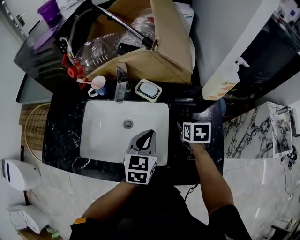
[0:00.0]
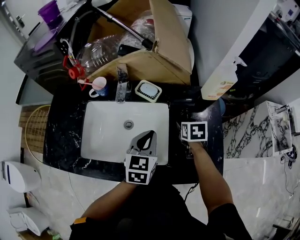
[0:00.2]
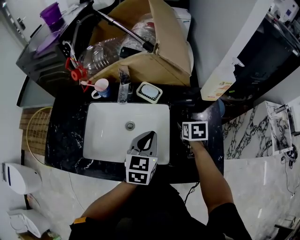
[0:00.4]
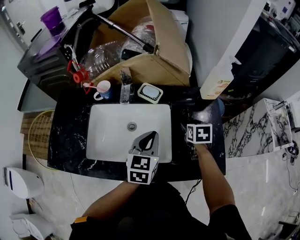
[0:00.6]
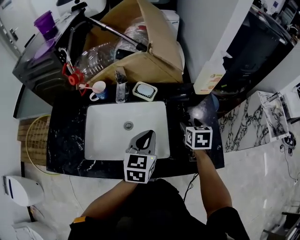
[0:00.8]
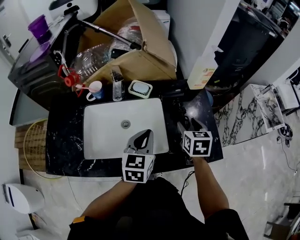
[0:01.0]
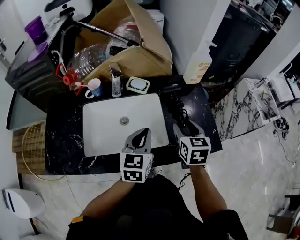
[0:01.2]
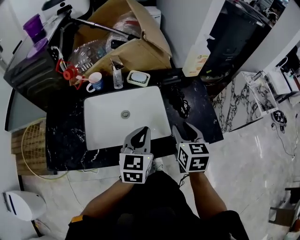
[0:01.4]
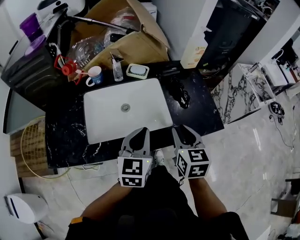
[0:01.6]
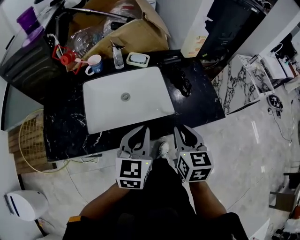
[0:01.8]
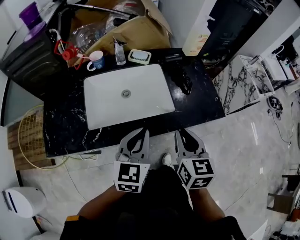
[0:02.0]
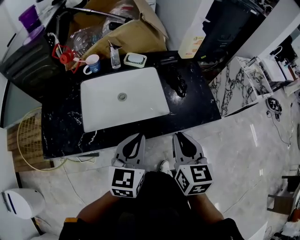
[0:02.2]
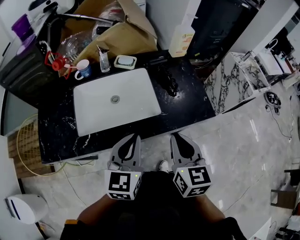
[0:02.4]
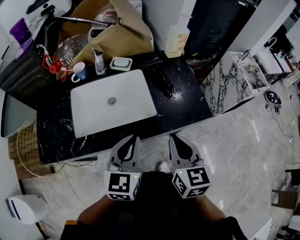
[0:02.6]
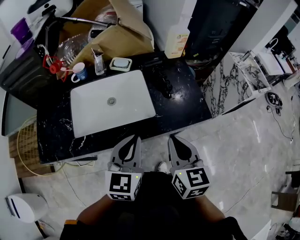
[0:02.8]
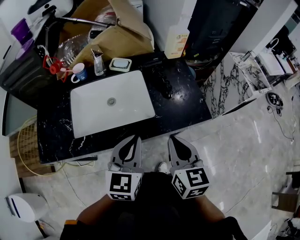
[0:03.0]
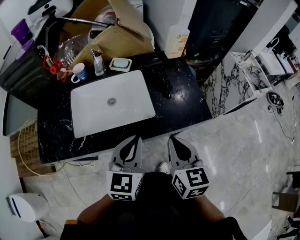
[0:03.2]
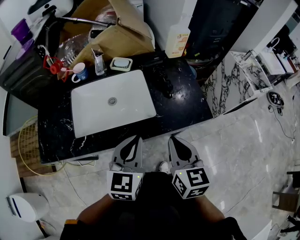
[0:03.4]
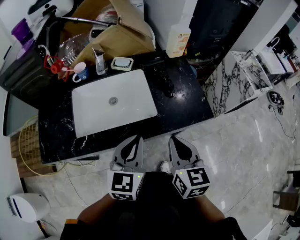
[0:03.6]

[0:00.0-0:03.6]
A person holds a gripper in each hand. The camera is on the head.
0:00.0 to 0:01.8: The right gripper heads backward and upward, covering about 35 cm, changes its angle by roughly 30 degrees, and closes. Meanwhile the left gripper moves backward, about 20 cm.
0:01.8 to 0:03.6: Both grippers travel together to the right, some 5 cm.

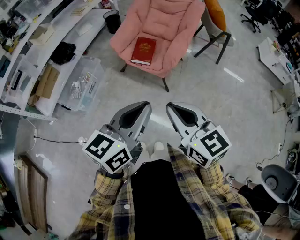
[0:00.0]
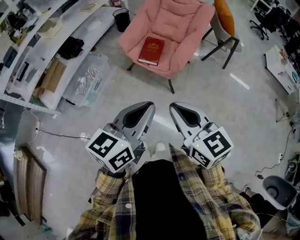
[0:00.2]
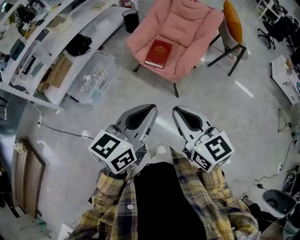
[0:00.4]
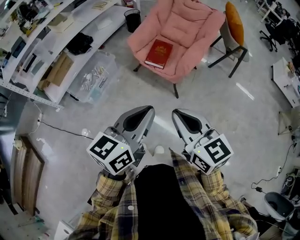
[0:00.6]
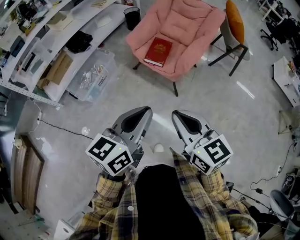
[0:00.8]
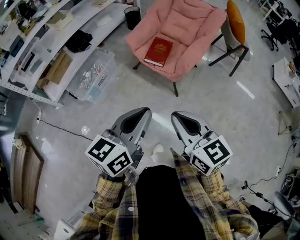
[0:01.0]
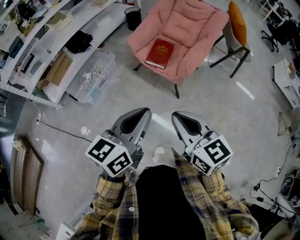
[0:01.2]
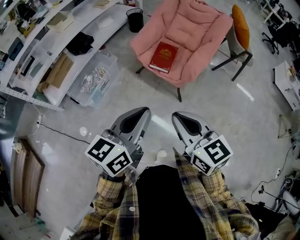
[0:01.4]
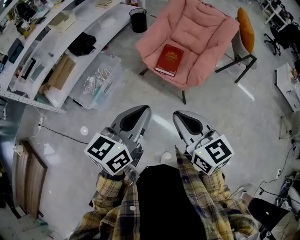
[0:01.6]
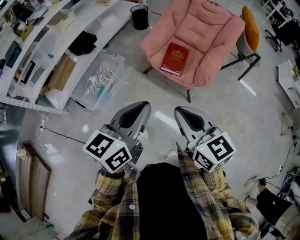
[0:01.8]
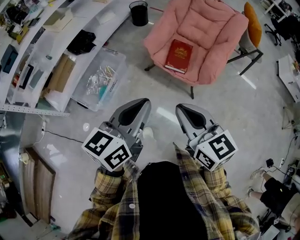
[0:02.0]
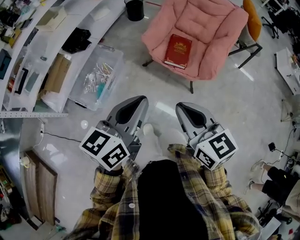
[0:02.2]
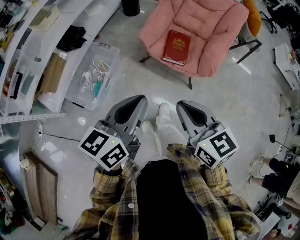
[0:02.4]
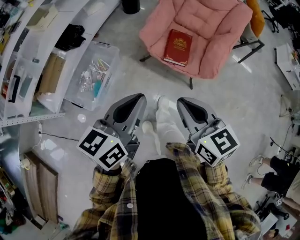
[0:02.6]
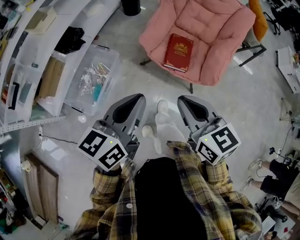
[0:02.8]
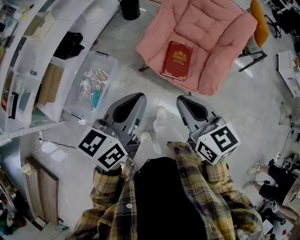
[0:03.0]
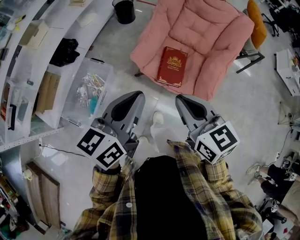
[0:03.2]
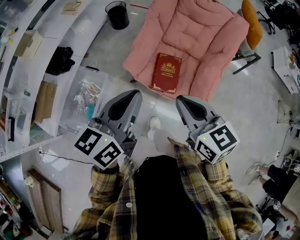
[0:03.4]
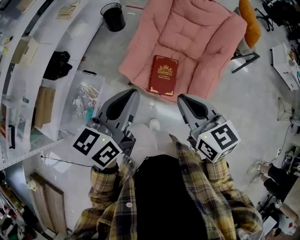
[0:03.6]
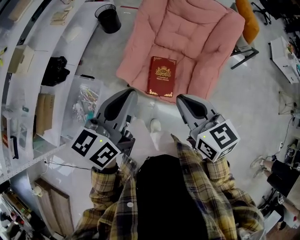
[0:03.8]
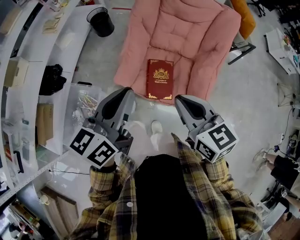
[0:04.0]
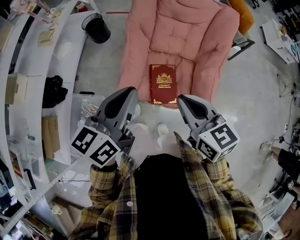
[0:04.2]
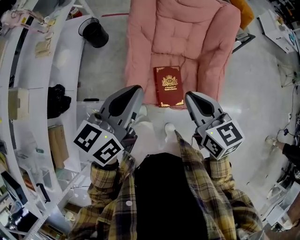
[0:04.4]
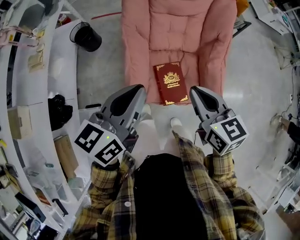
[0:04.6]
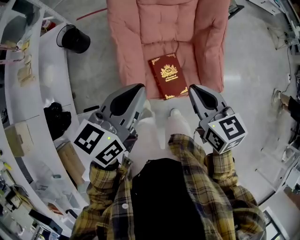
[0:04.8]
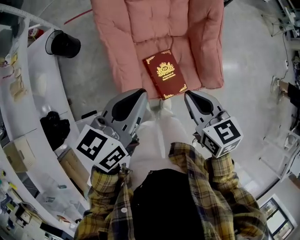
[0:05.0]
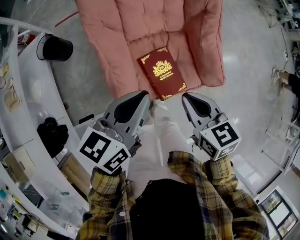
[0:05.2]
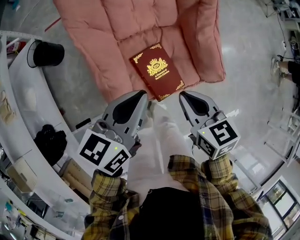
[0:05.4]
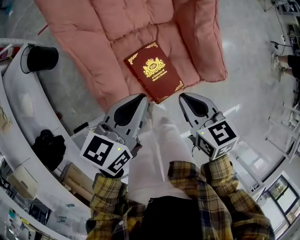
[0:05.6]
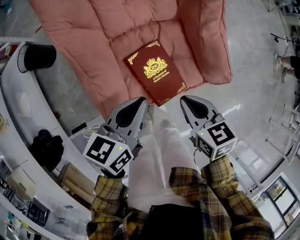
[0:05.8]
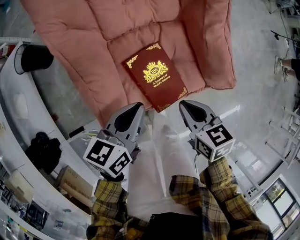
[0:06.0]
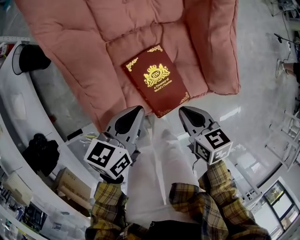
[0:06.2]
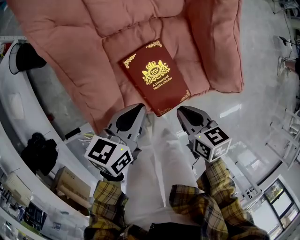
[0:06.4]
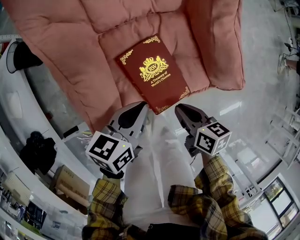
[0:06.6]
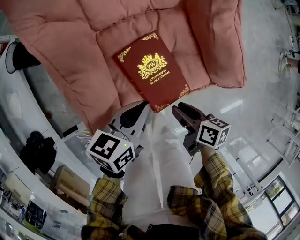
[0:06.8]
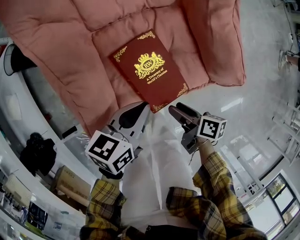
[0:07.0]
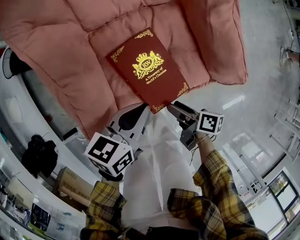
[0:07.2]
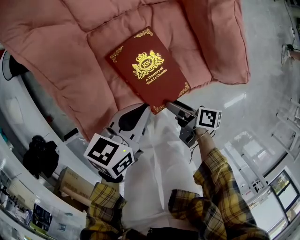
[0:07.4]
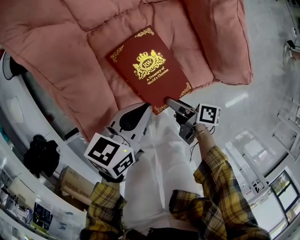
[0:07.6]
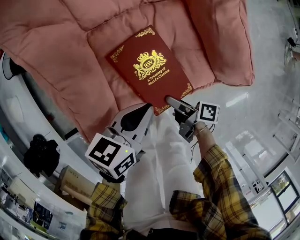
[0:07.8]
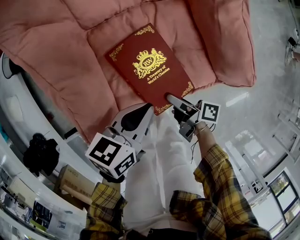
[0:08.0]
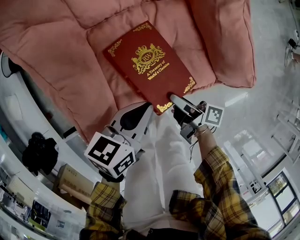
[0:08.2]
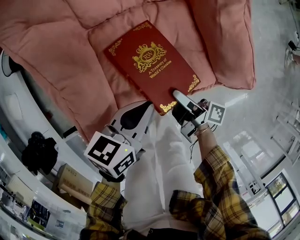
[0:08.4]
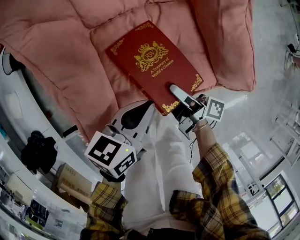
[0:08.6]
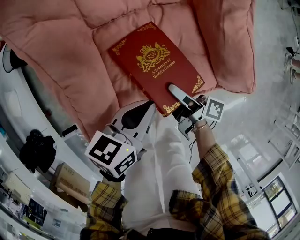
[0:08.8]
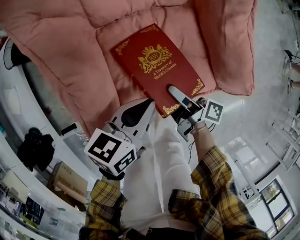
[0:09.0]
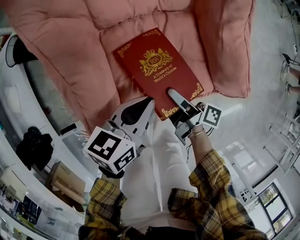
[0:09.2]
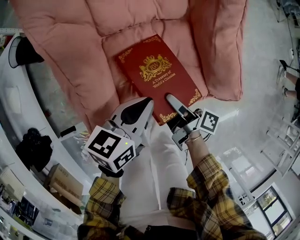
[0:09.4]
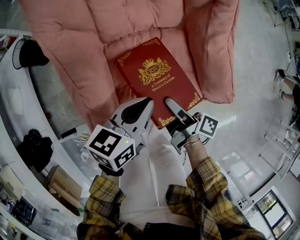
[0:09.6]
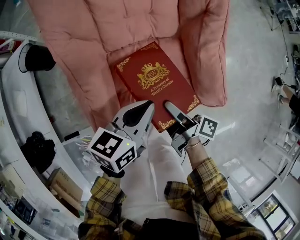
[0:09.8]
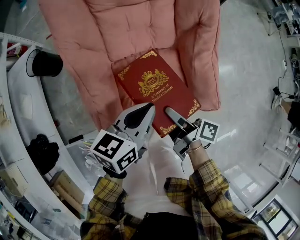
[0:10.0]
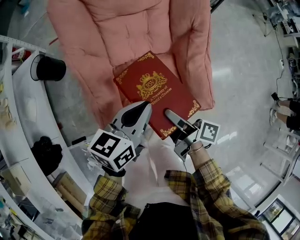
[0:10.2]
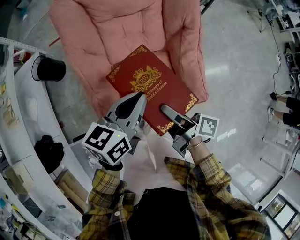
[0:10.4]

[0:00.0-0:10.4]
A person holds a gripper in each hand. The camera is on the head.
0:00.0 to 0:01.4: The left gripper heads forward and to the left, covering about 10 cm, while the right gripper is displaced forward by roughly 5 cm.
0:01.4 to 0:03.0: The grippers both shift forward and to the left by about 35 cm.
0:03.0 to 0:04.4: Both grippers travel together forward, about 30 cm. The left gripper changes its angle by about 20 degrees. Meanwhile the right gripper turns by roughly 30 degrees.
0:04.4 to 0:06.0: Both grippers travel together downward, approximately 35 cm. The left gripper swivels about 30 degrees. Meanwhile the right gripper rotates about 30 degrees.
0:06.0 to 0:07.4: The right gripper is displaced downward by about 20 cm, rolls clockwise, seen from behind, by some 60 degrees, and opens. The left gripper shifts some 10 cm downward and to the right.
0:07.4 to 0:09.0: The right gripper travels forward and upward by some 10 cm, and swivels approximately 20 degrees.
0:09.0 to 0:10.4: The two grippers go some 25 cm upward.

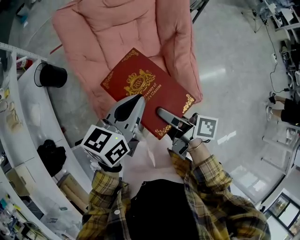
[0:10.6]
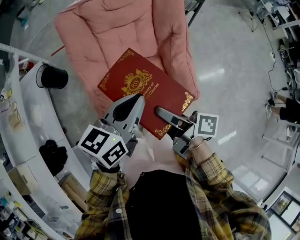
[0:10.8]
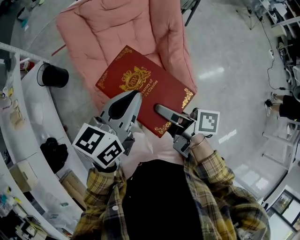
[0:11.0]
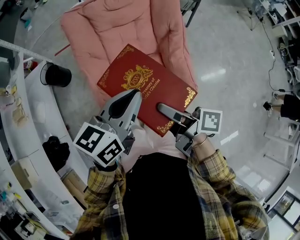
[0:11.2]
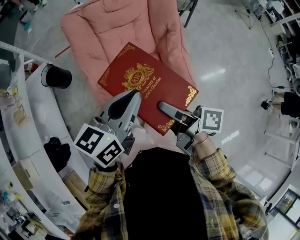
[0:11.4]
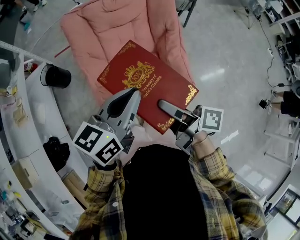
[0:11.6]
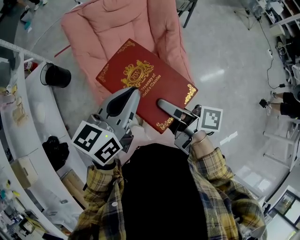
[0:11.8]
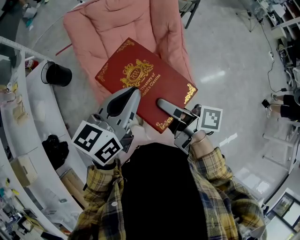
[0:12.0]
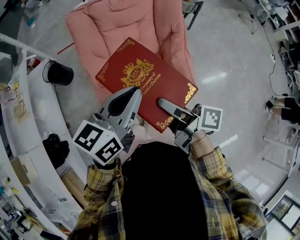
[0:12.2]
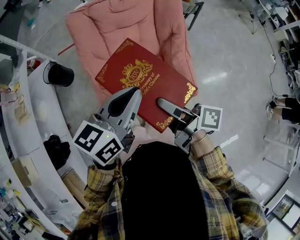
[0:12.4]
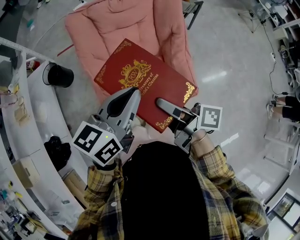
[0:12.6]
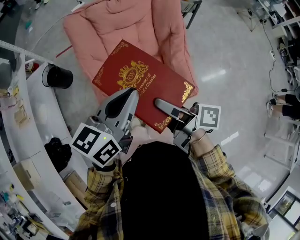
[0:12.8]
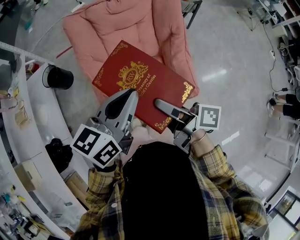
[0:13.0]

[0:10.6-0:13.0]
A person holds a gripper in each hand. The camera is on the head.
0:10.6 to 0:11.8: The left gripper travels upward and backward by roughly 10 cm. Meanwhile the right gripper travels upward by approximately 10 cm.
0:11.8 to 0:13.0: The grippers make only small movements.

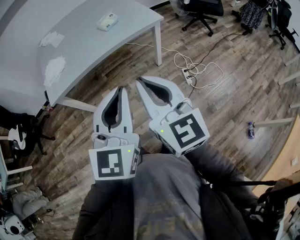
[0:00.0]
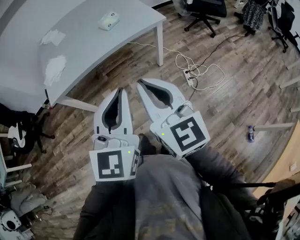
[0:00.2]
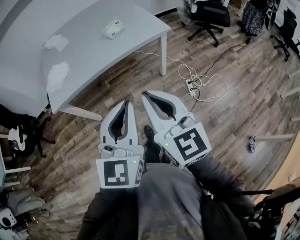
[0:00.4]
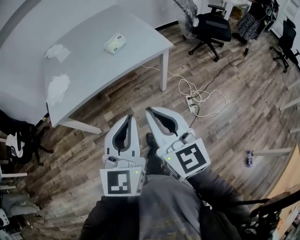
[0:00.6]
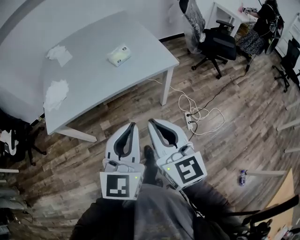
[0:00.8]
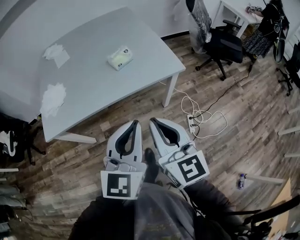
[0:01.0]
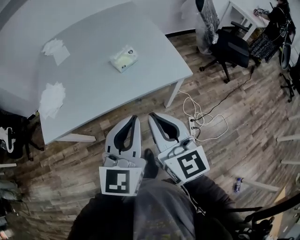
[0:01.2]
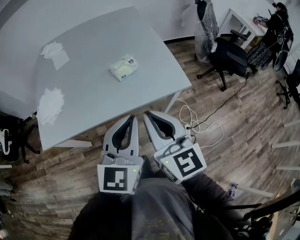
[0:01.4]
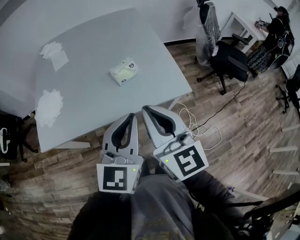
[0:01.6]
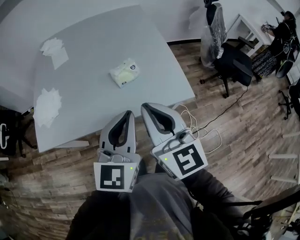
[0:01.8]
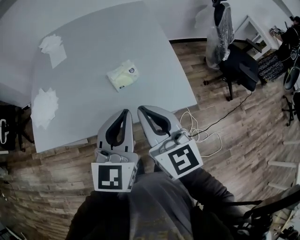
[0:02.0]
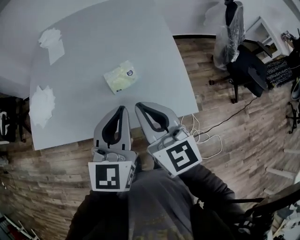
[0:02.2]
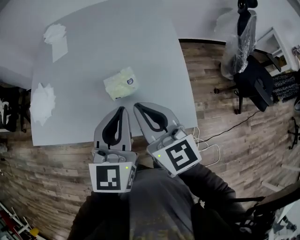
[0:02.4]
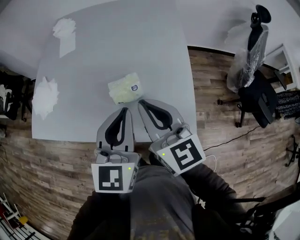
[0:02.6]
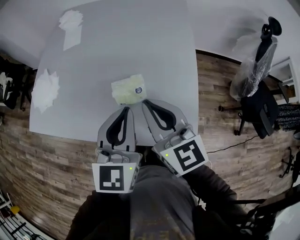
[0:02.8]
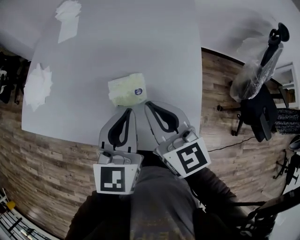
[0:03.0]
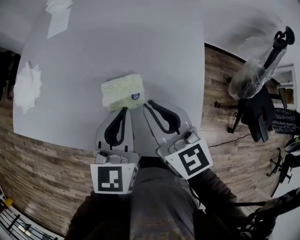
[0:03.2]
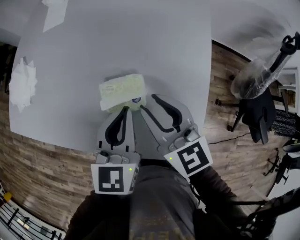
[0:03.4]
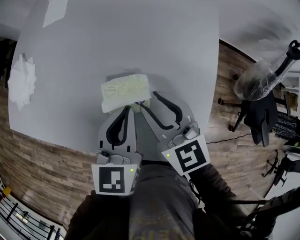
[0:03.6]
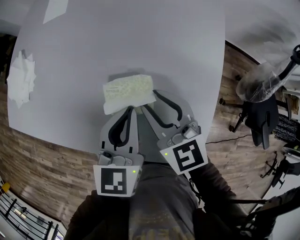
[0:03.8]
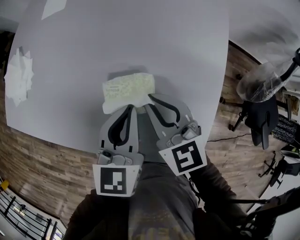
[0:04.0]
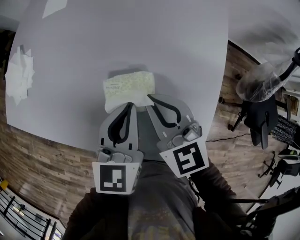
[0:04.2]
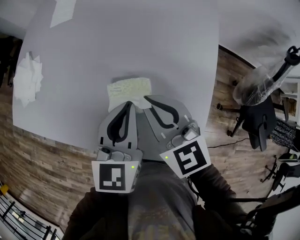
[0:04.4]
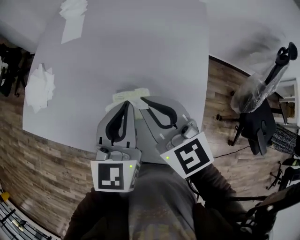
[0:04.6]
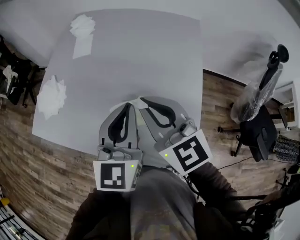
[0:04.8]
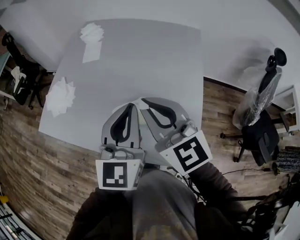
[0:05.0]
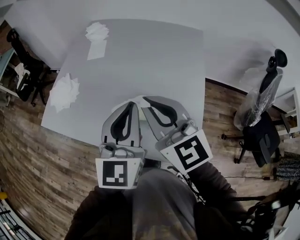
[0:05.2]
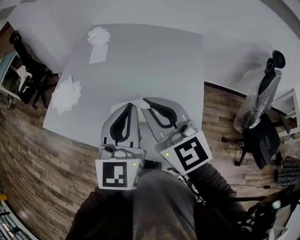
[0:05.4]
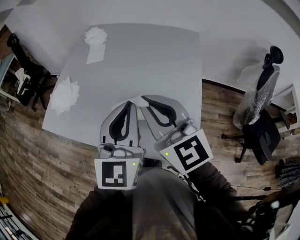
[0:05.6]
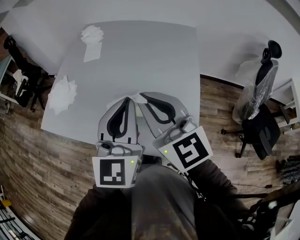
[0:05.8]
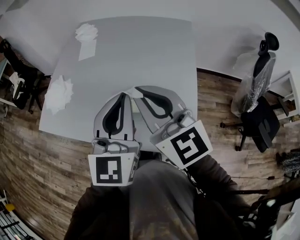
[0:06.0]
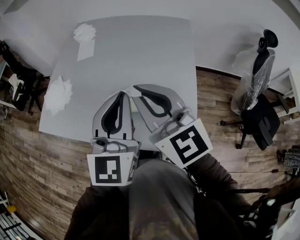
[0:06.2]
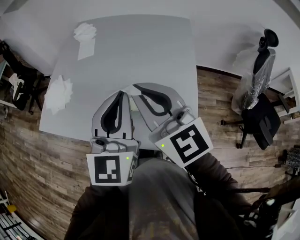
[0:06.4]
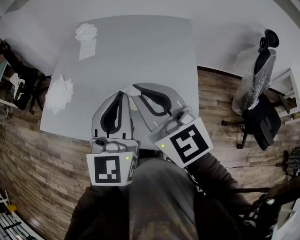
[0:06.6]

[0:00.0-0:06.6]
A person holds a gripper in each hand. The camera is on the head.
0:00.0 to 0:01.6: Both grippers are carried forward, approximately 40 cm.
0:01.6 to 0:03.2: The right gripper ends up some 35 cm from where it was, and rotates approximately 30 degrees. Meanwhile the left gripper changes place by about 35 cm, and changes its angle by approximately 40 degrees.
0:03.2 to 0:05.0: Both grippers move upward, some 15 cm. The right gripper opens, then closes again.
0:05.0 to 0:06.6: The right gripper shifts by about 5 cm; the left gripper changes place by roughly 5 cm.
